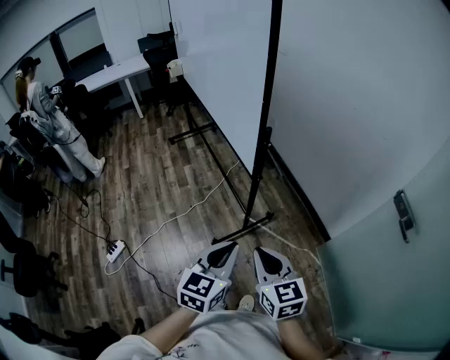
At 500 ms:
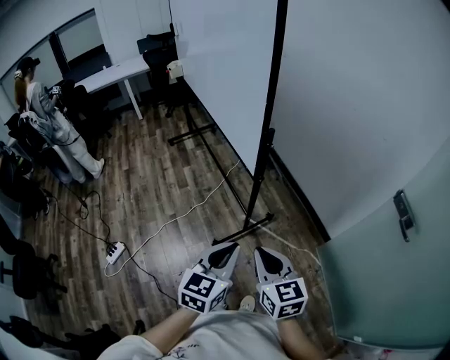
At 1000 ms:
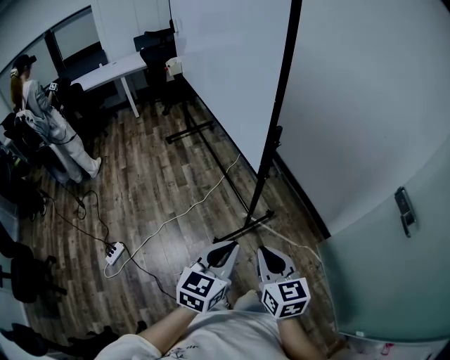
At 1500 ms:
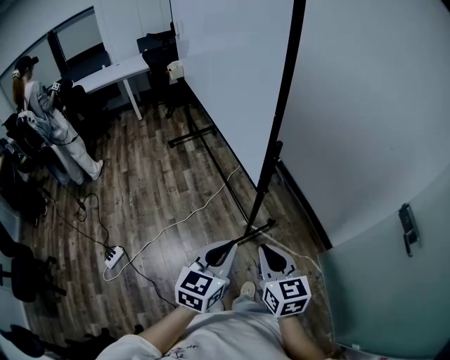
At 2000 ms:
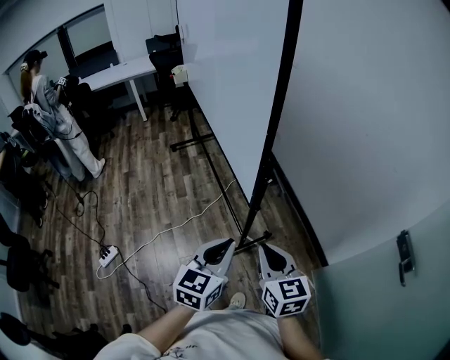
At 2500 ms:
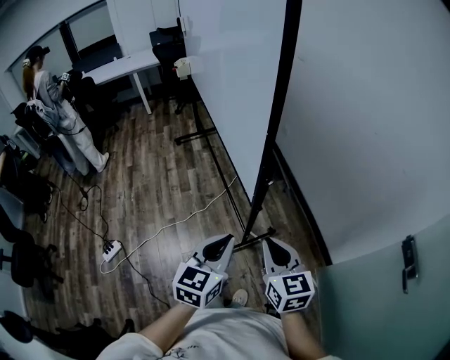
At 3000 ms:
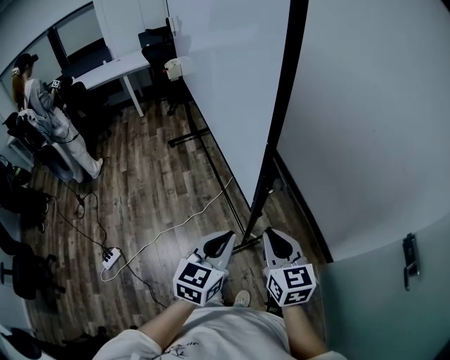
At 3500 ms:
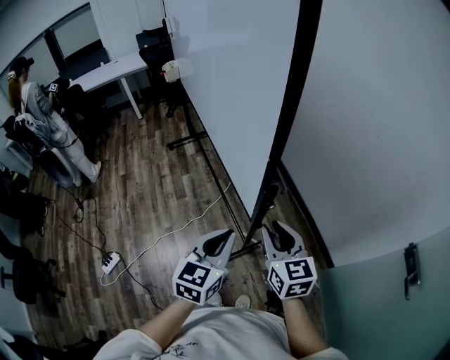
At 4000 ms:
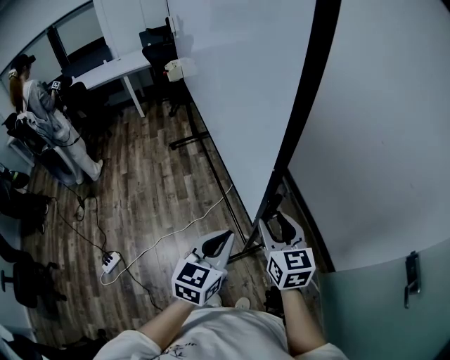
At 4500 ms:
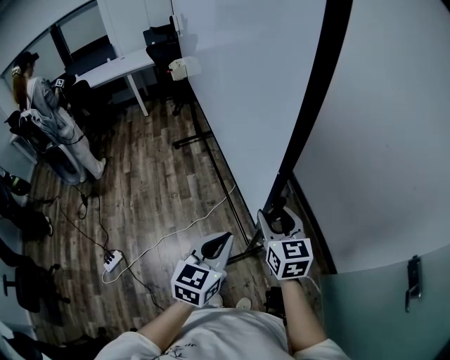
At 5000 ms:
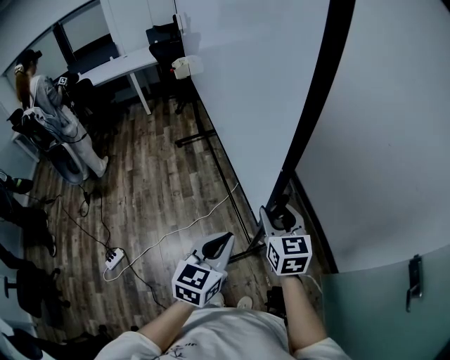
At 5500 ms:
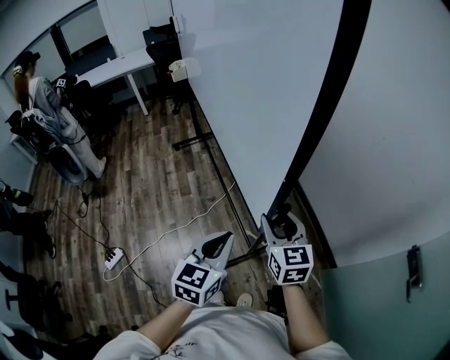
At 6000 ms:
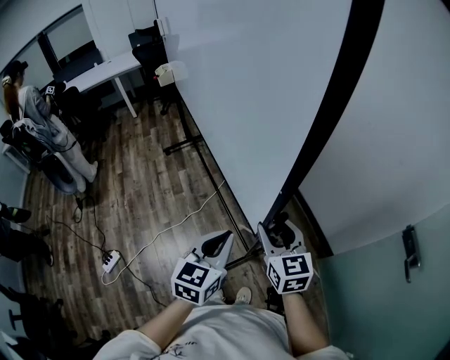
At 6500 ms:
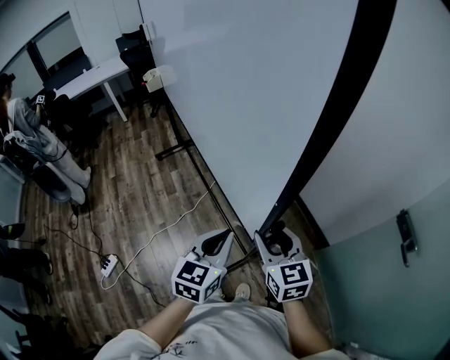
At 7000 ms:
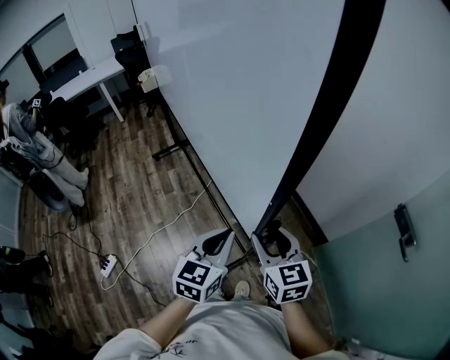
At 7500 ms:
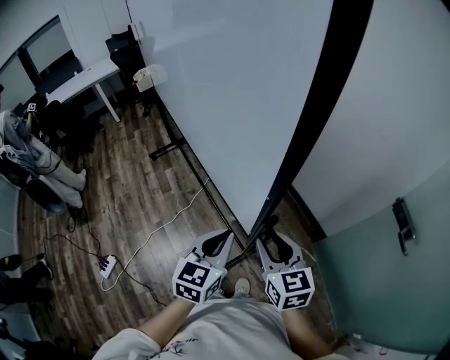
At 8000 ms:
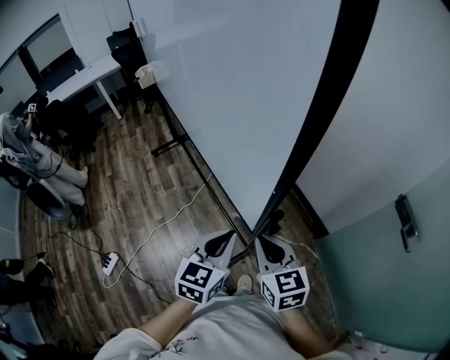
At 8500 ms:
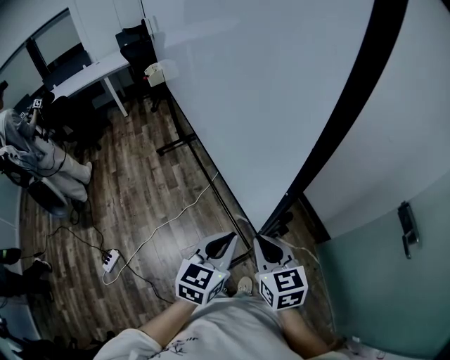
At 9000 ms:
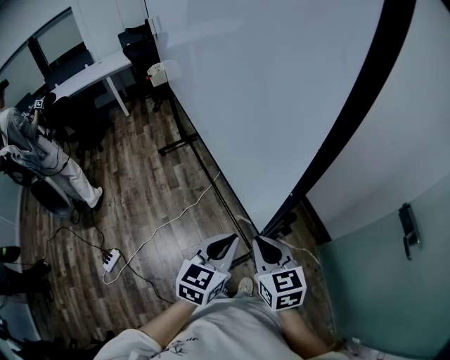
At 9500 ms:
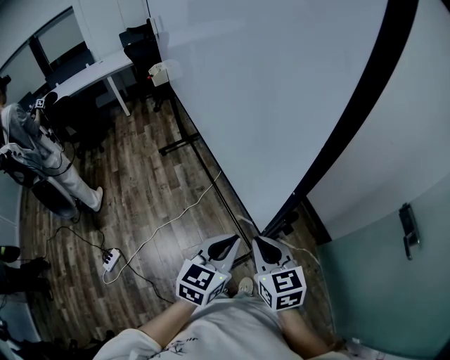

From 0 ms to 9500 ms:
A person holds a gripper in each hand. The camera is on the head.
From 0 ms to 2000 ms: The grippers both shift forward by approximately 15 cm.
From 2000 ms to 4000 ms: Both grippers move forward, about 15 cm. The right gripper opens its fingers.
From 4000 ms to 5500 ms: The grippers move only a little.
From 5500 ms to 7500 ms: The right gripper is displaced backward and to the right by approximately 15 cm, while the left gripper moves to the right and backward, approximately 10 cm.
From 7500 ms to 9500 ms: The right gripper moves to the left, about 5 cm, and closes.

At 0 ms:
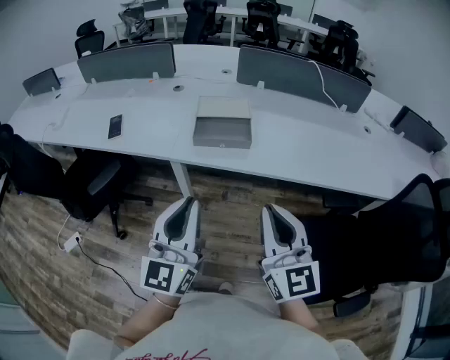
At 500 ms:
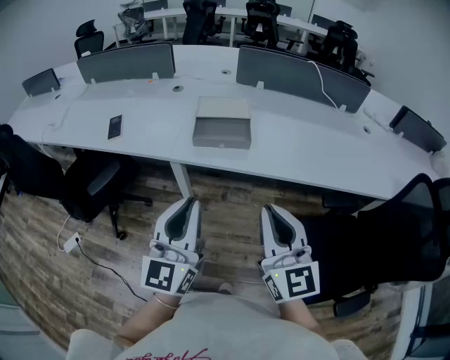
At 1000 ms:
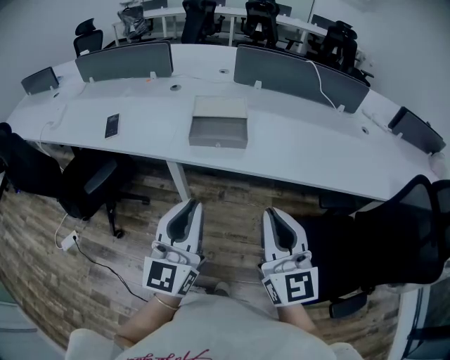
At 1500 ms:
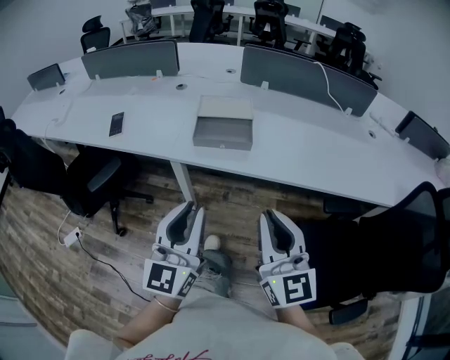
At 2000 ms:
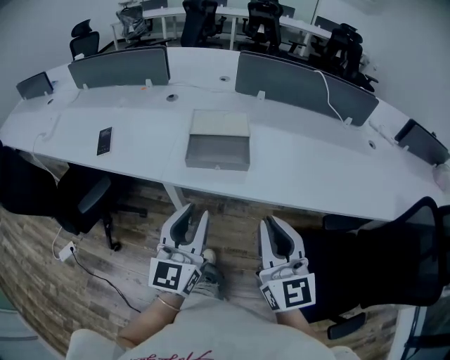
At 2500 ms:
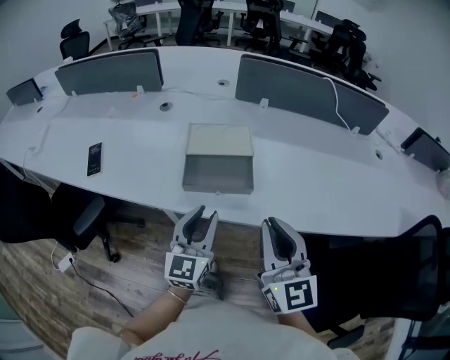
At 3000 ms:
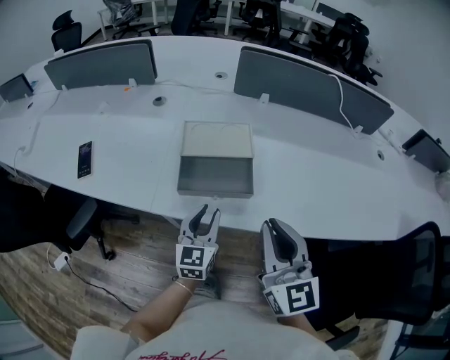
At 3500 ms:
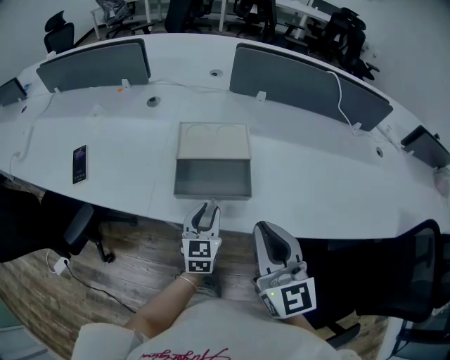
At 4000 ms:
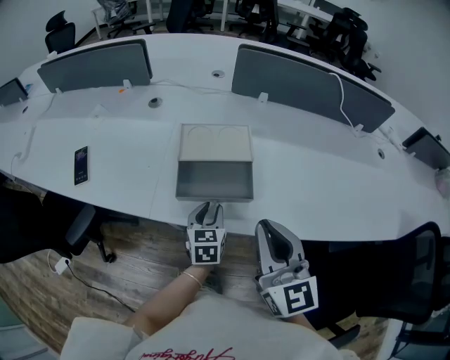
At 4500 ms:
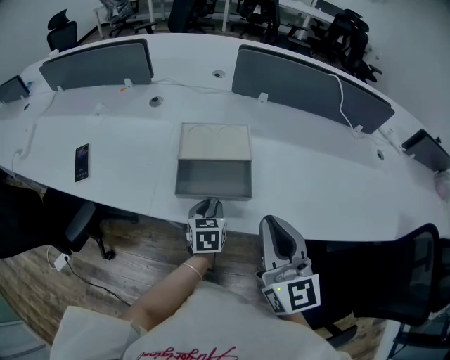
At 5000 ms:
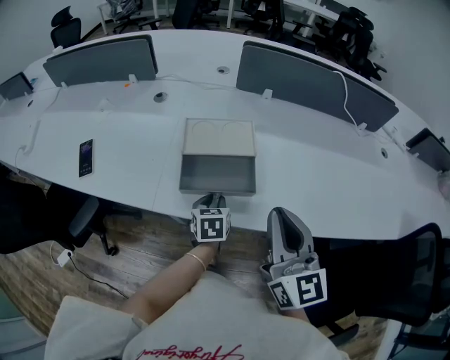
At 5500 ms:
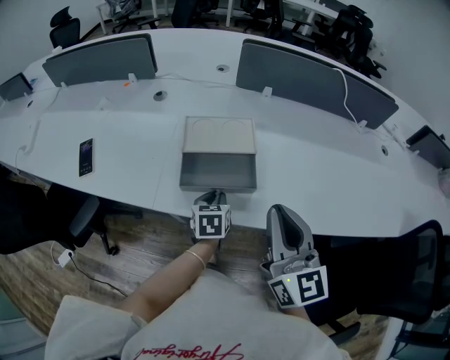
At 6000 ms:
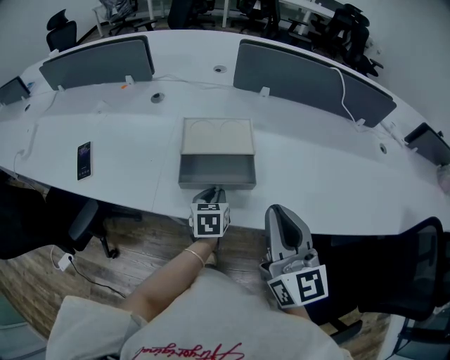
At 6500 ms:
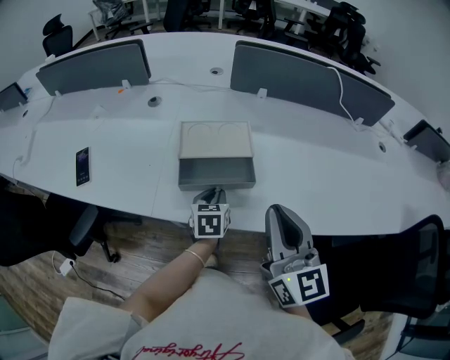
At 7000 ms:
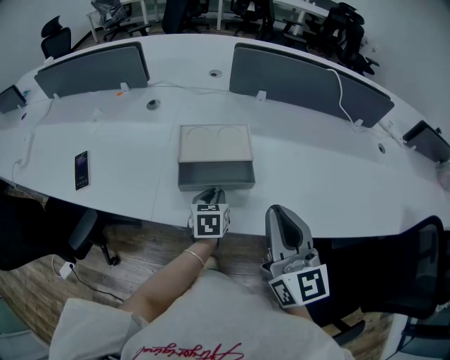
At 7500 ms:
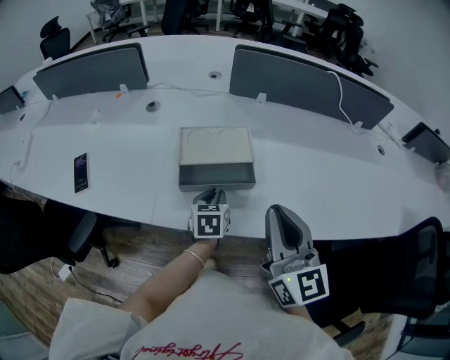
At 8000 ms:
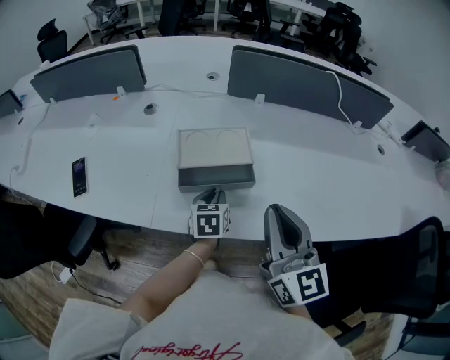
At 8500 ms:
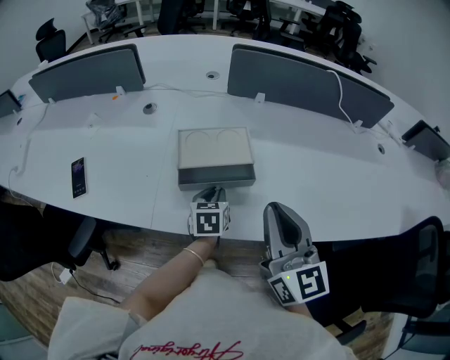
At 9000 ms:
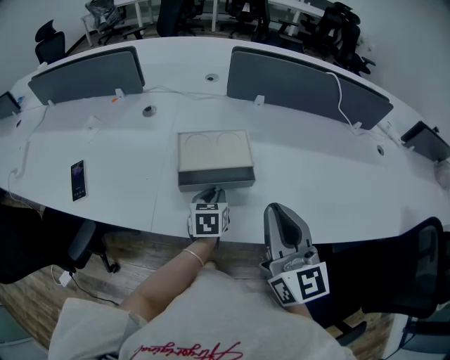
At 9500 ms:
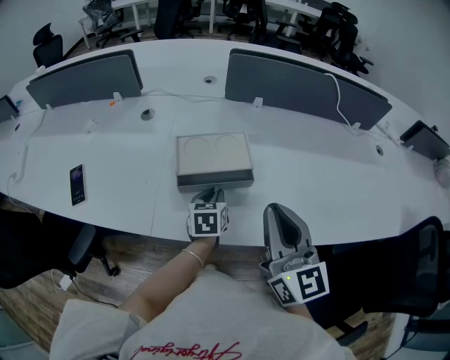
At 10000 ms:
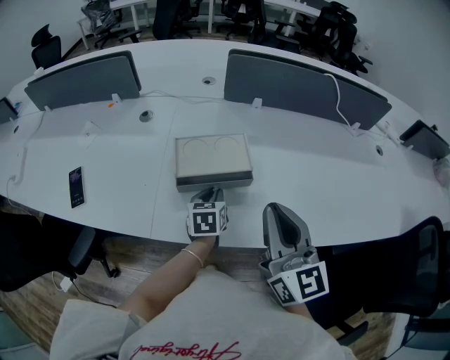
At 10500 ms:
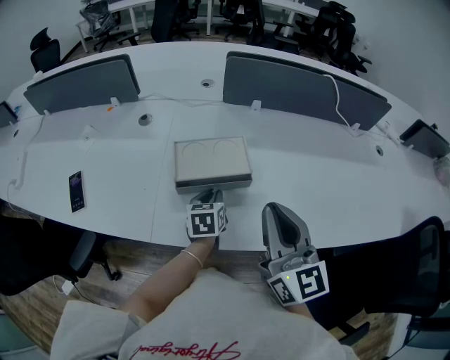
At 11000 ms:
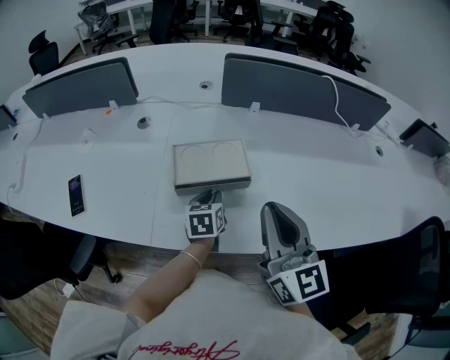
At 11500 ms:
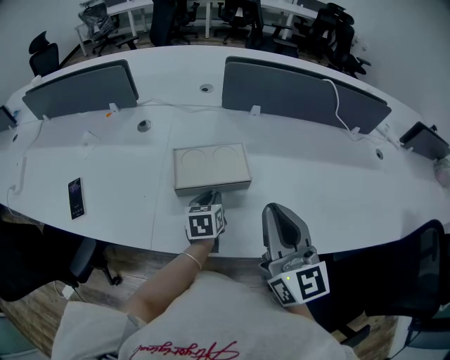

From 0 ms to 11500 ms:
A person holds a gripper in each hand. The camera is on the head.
From 0 ms to 2000 ms: The right gripper shifts some 10 cm forward. The left gripper travels forward and downward by about 10 cm.
From 2000 ms to 4000 ms: The right gripper shifts roughly 15 cm forward; the left gripper shifts approximately 30 cm forward and downward, and angles its fingers downward, by roughly 40 degrees.
From 4000 ms to 7500 ms: The grippers make only small movements.
From 7500 ms to 9500 ms: There are only small adjustments of the grippers.
From 9500 ms to 11500 ms: There are only small adjustments of the grippers.

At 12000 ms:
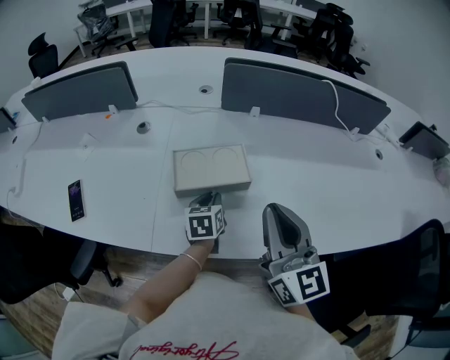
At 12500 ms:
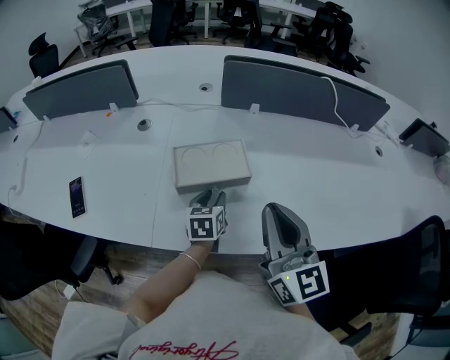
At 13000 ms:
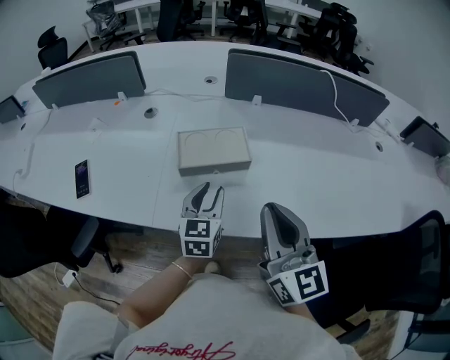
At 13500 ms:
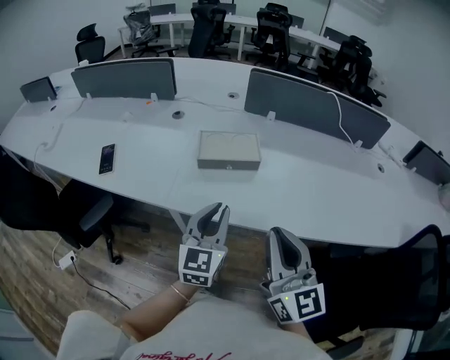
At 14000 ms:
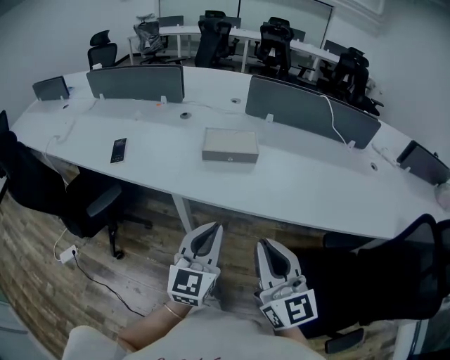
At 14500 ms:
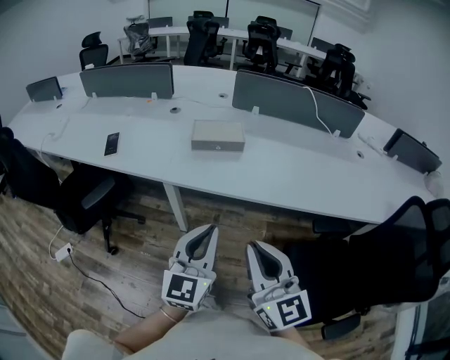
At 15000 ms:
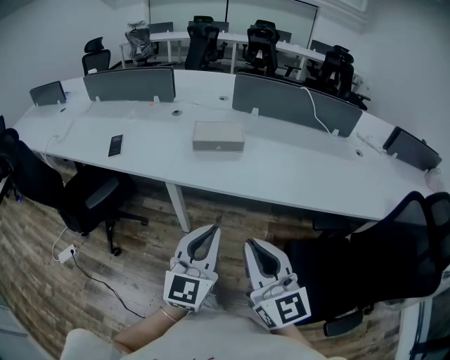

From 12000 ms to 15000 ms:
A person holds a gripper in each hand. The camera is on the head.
From 12000 ms to 13500 ms: The left gripper goes roughly 25 cm backward and upward, and points its fingers approximately 30 degrees further upward, while the right gripper shifts about 20 cm backward.
From 13500 ms to 15000 ms: Both grippers travel together backward, roughly 20 cm.

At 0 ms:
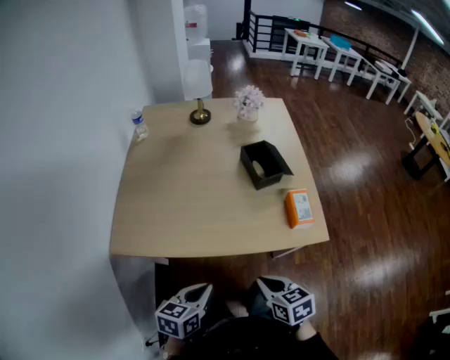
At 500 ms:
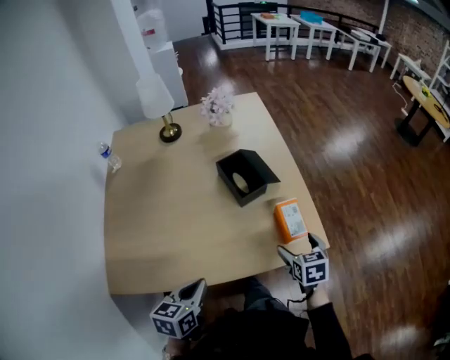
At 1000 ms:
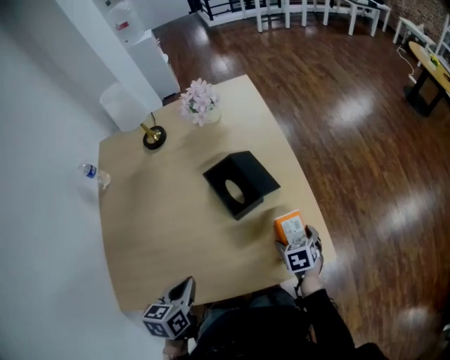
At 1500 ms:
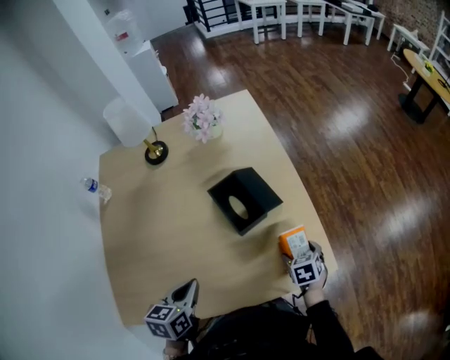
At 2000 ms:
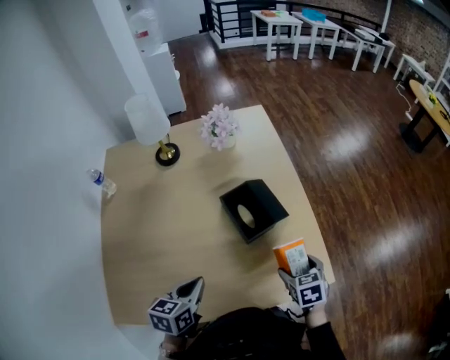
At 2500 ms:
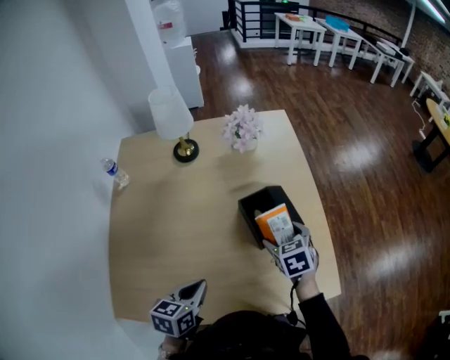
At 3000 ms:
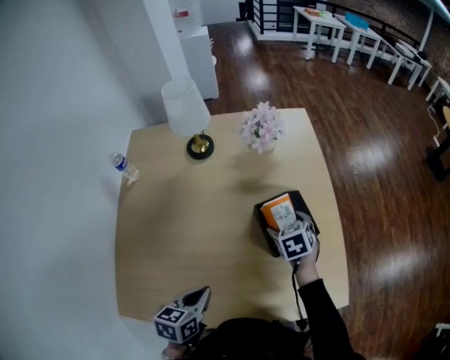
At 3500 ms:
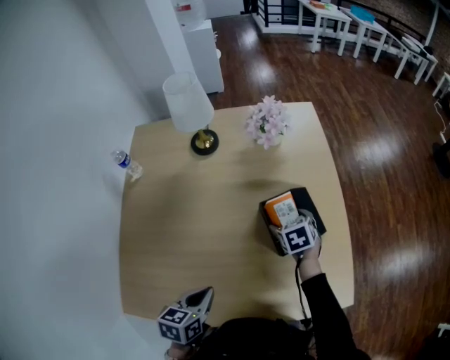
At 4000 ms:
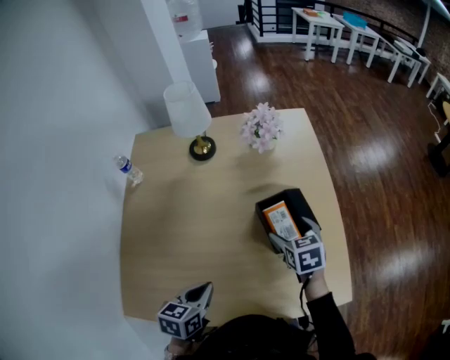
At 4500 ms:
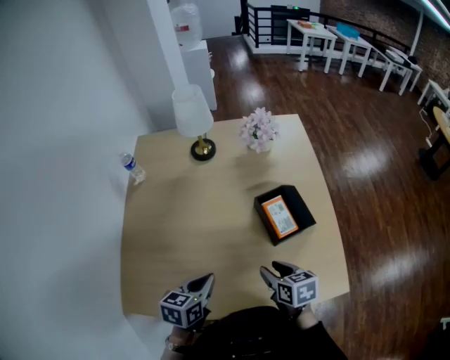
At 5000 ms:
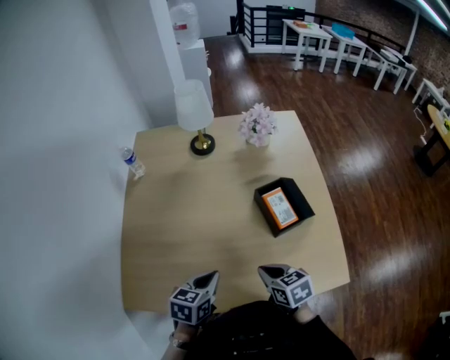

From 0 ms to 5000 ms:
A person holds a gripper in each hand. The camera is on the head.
From 0 ms to 2500 ms: The two grippers go roughly 40 cm forward. The right gripper swivels about 20 degrees, and opens its fingers.
From 2500 ms to 5000 ms: The right gripper moves backward and to the left, about 20 cm, changes its angle by about 30 degrees, and closes up.
